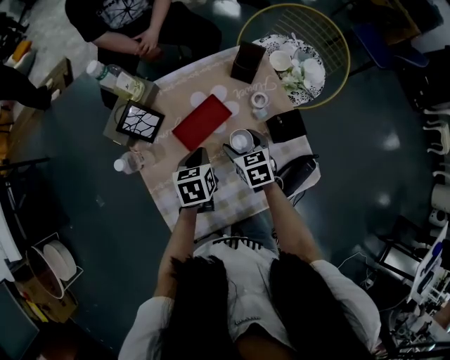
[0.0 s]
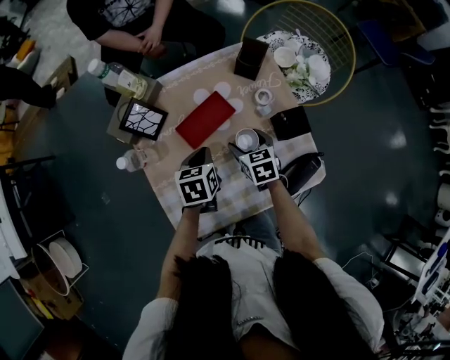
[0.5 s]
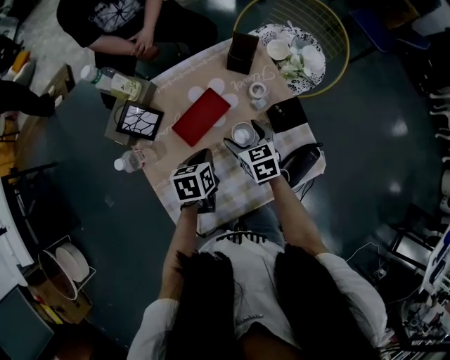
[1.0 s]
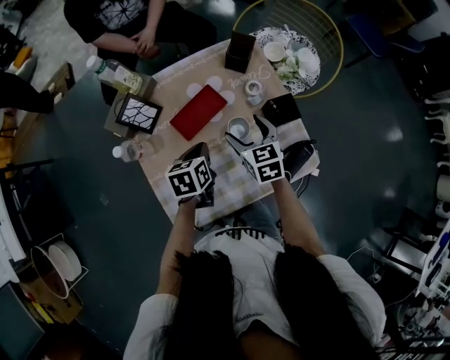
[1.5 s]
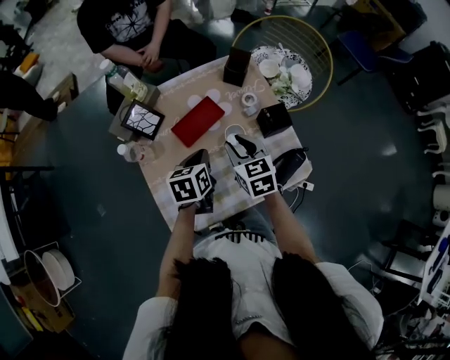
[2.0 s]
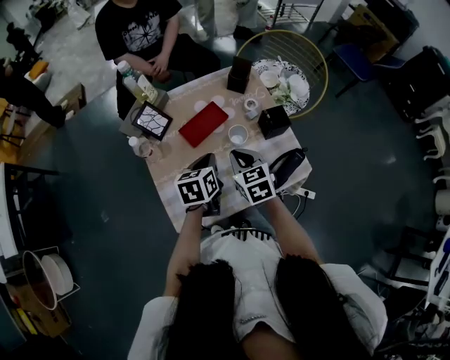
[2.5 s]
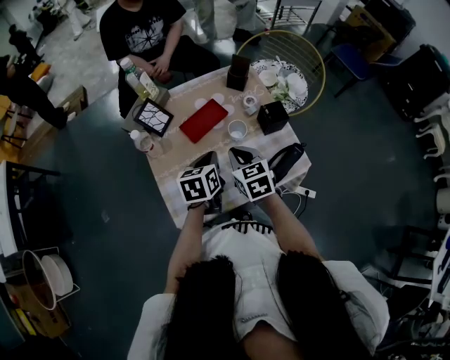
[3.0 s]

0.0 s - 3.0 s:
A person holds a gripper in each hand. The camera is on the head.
0.0 s - 1.5 s: The right gripper heads upward, covering about 5 cm.
1.5 s - 3.0 s: The left gripper heads upward and backward, covering about 10 cm; the right gripper travels backward and upward by some 10 cm, and closes its fingers.

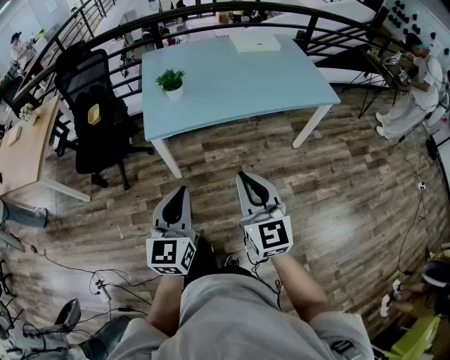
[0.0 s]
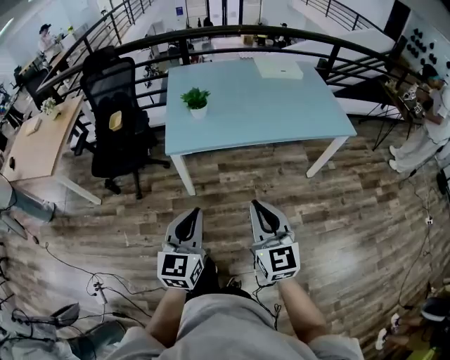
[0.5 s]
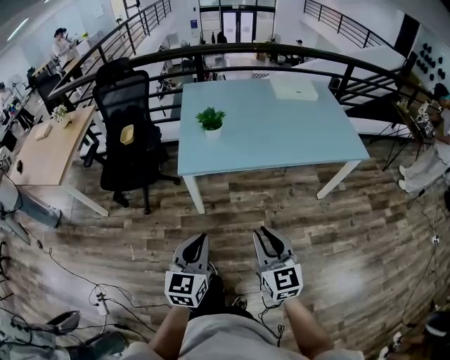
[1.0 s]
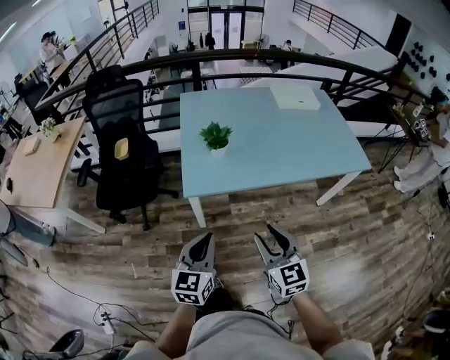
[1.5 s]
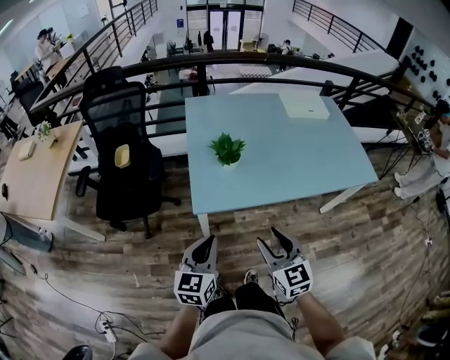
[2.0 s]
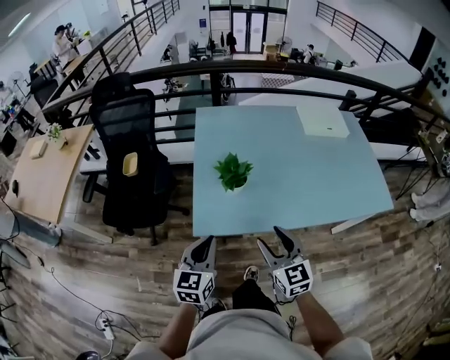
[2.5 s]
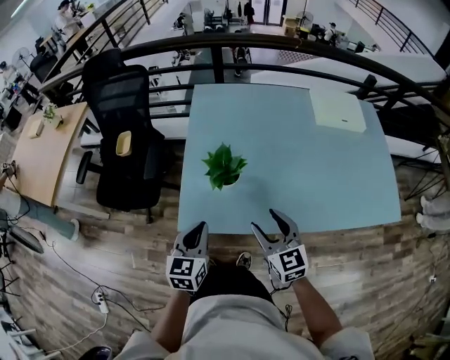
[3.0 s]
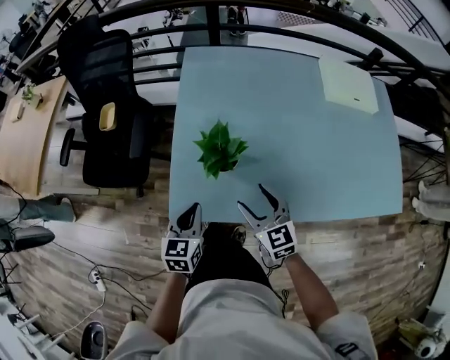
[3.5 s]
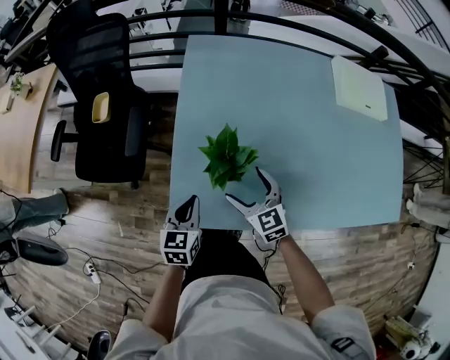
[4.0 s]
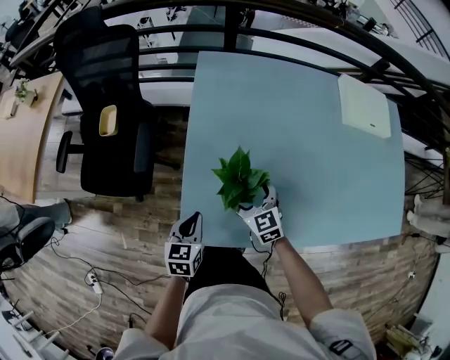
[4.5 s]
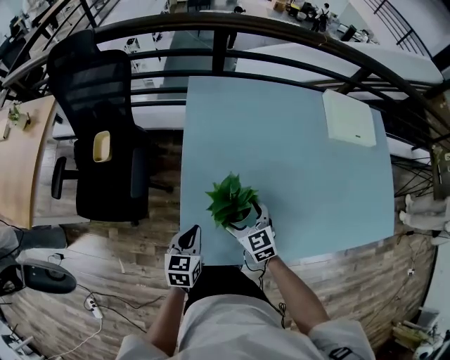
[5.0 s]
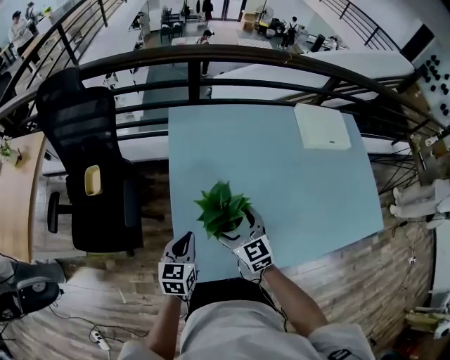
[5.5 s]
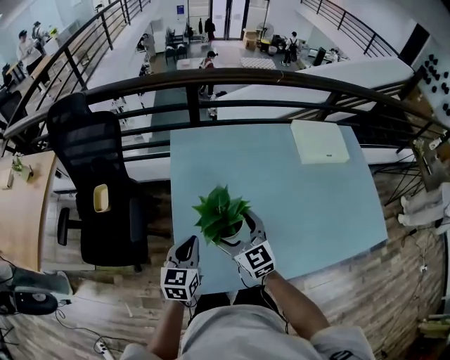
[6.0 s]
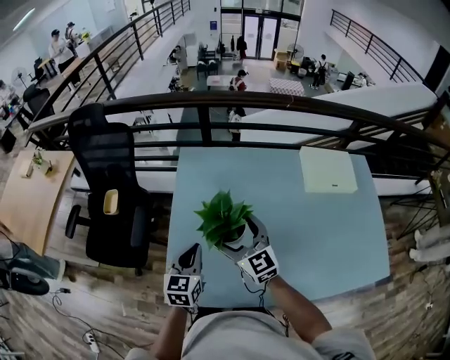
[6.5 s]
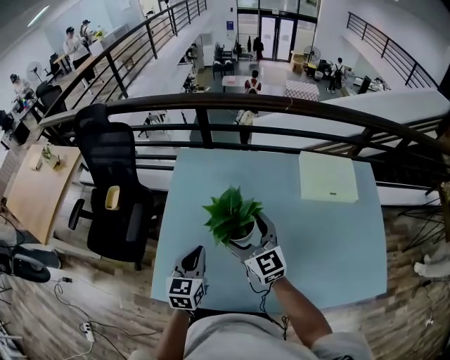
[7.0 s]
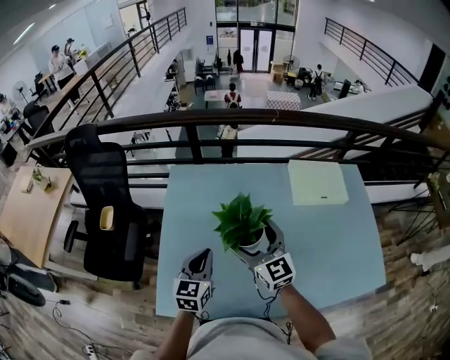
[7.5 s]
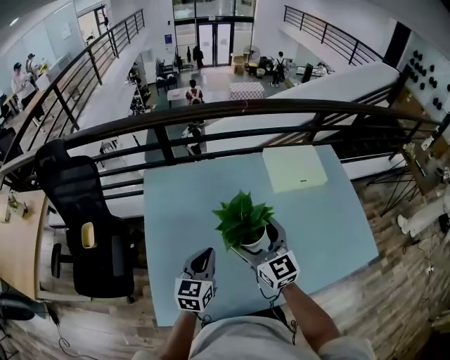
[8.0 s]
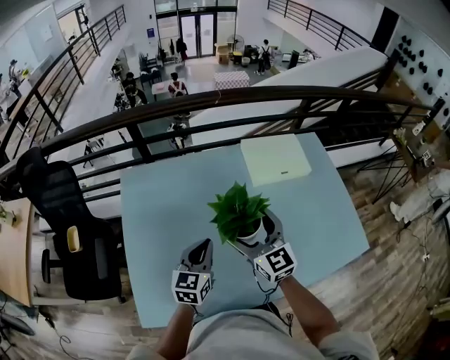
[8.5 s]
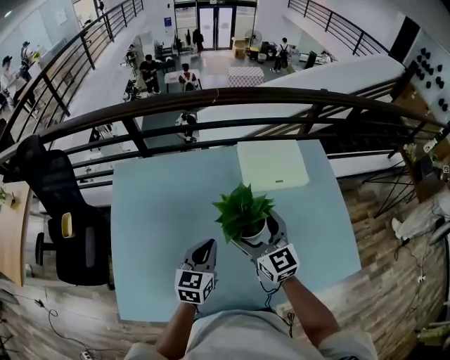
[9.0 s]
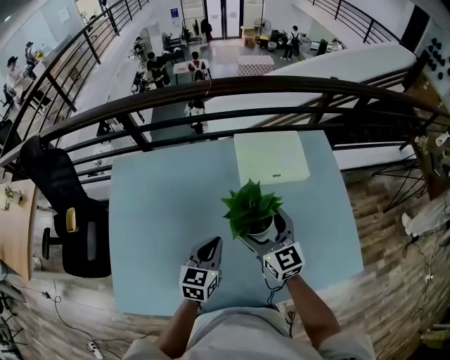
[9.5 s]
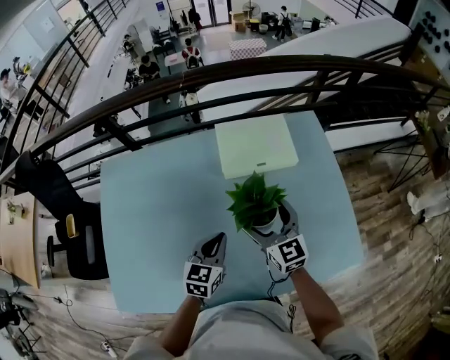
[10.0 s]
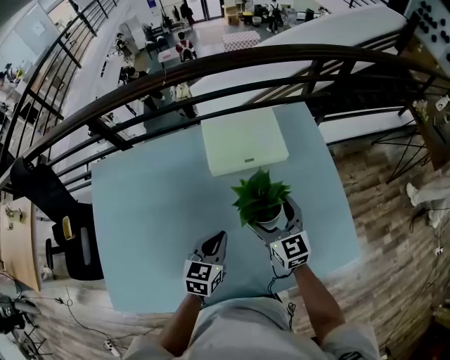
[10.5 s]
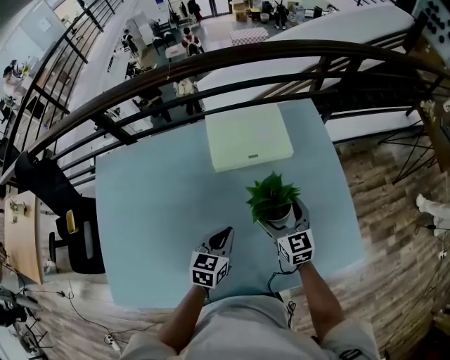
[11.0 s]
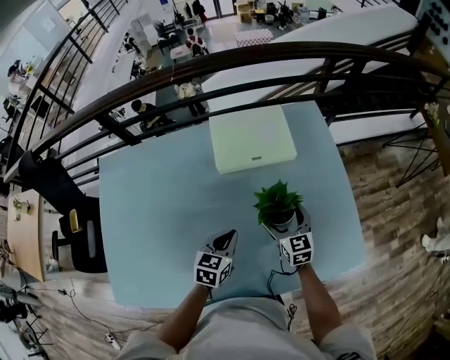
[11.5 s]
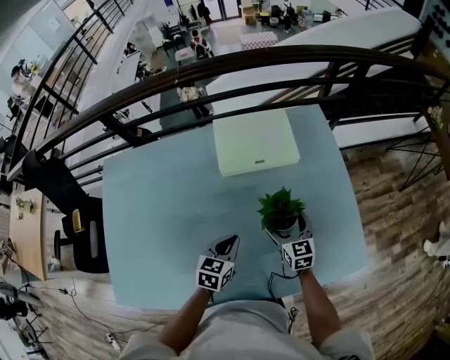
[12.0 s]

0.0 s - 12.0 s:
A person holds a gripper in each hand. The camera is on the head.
0.0 s - 2.0 s: The right gripper moves forward, to the left and downward, roughly 25 cm, and opens its fingers. The left gripper shifts approximately 25 cm forward and to the left.
2.0 s - 4.0 s: Both grippers travel together forward and downward, approximately 35 cm. The right gripper rotates approximately 20 degrees, and opens, while the left gripper changes its angle by about 30 degrees.
4.0 s - 6.0 s: The right gripper travels upward and forward by about 15 cm; the left gripper goes approximately 15 cm forward and upward.
6.0 s - 8.0 s: The right gripper heads to the right and upward, covering some 25 cm, while the left gripper moves to the right, roughly 20 cm.
8.0 s - 10.0 s: Both grippers move to the right, approximately 35 cm.
10.0 s - 12.0 s: The left gripper shifts about 10 cm downward and to the right, while the right gripper heads downward and to the right, covering about 20 cm.

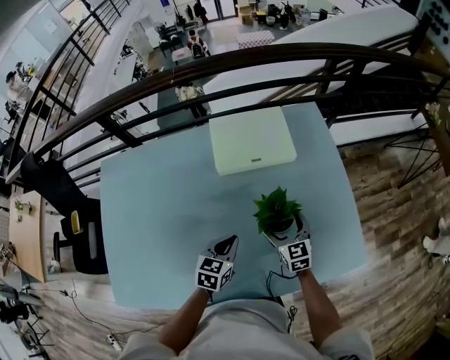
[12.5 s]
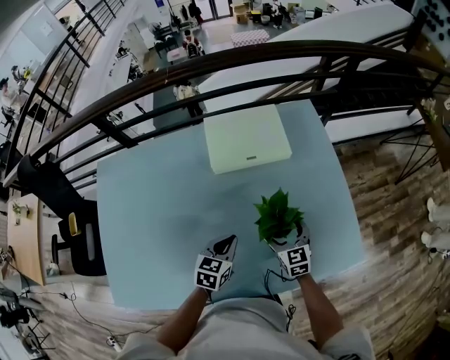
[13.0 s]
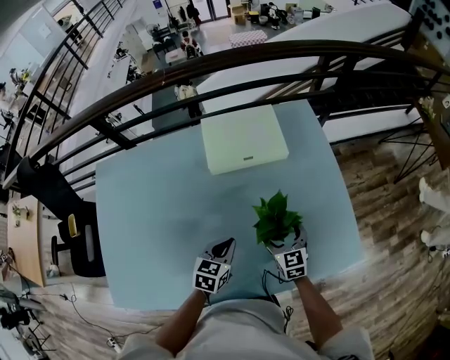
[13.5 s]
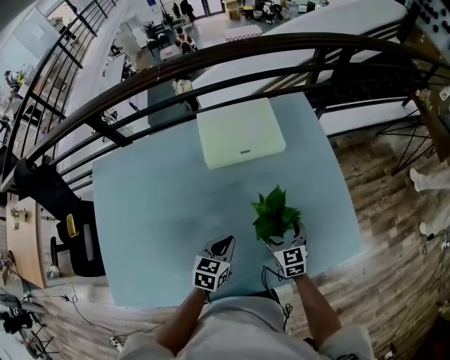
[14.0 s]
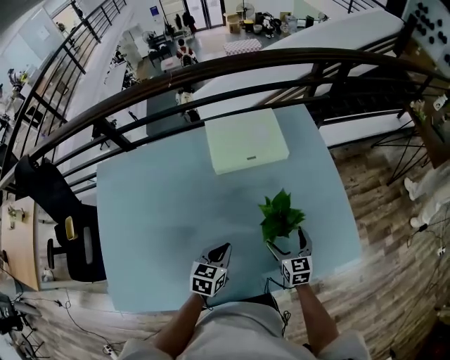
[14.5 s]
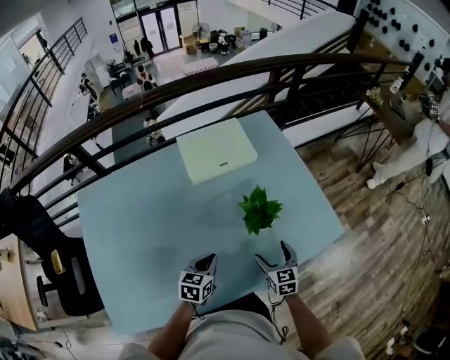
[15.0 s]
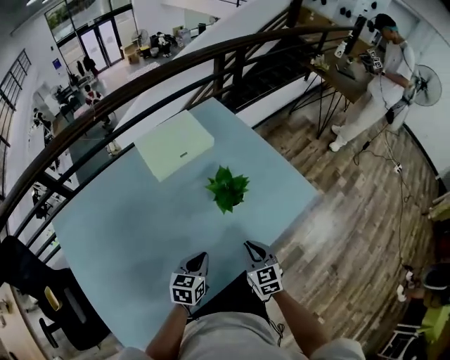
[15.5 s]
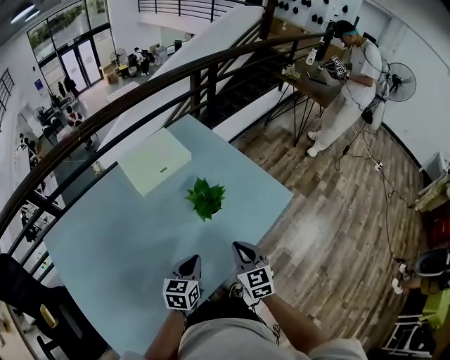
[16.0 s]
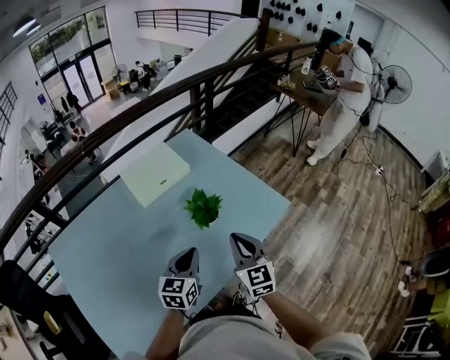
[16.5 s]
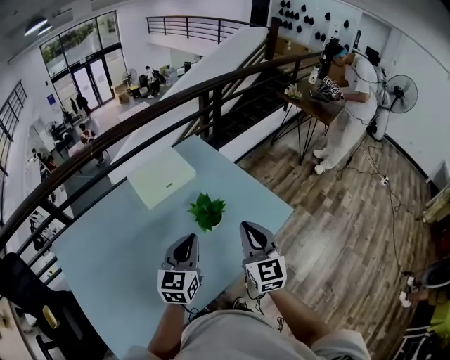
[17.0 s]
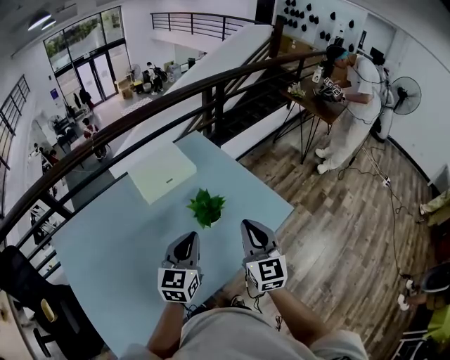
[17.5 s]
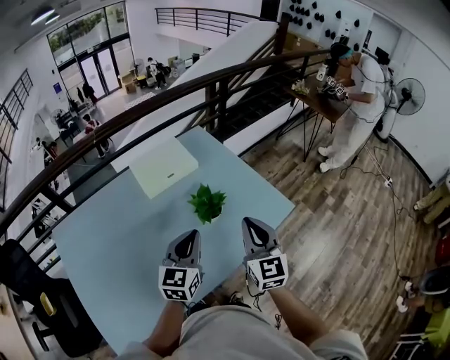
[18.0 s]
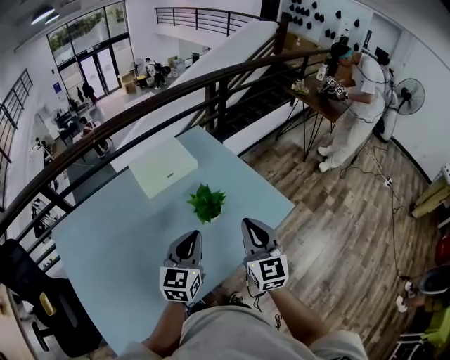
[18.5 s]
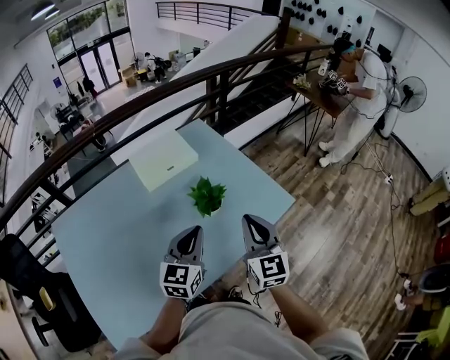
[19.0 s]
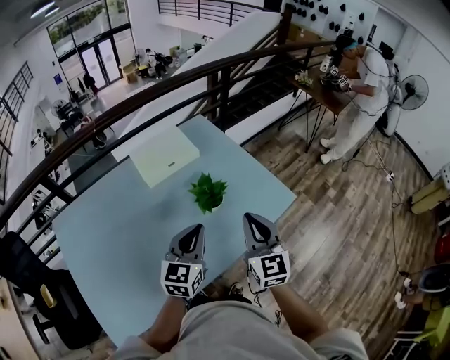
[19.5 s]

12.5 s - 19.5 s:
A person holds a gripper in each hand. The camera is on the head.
12.5 s - 14.5 s: The left gripper changes place by some 5 cm; the right gripper heads backward, covering some 10 cm.
14.5 s - 16.0 s: The left gripper goes about 10 cm backward, upward and to the right, and changes its angle by some 20 degrees, while the right gripper shifts some 20 cm backward and upward, rotates about 20 degrees, and closes its fingers.
16.0 s - 17.5 s: Both grippers travel together upward, approximately 15 cm. The right gripper swivels about 20 degrees. The left gripper swivels approximately 20 degrees.
17.5 s - 19.5 s: The grippers stay close to where they were, moving slightly.

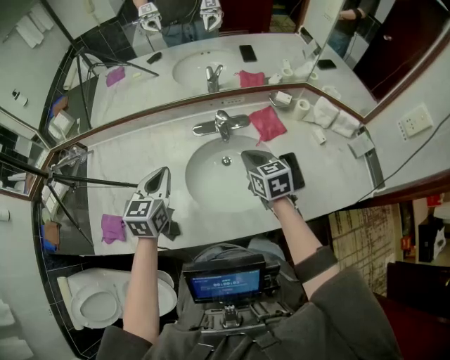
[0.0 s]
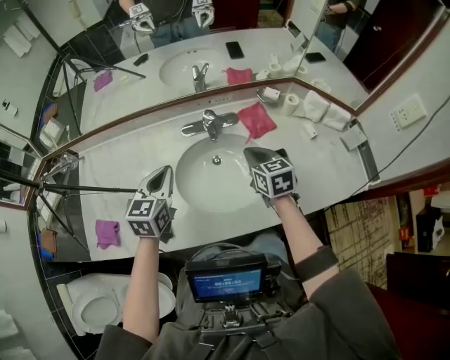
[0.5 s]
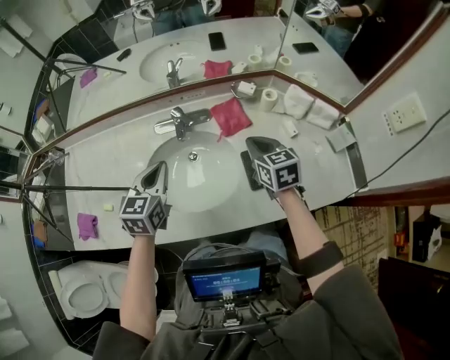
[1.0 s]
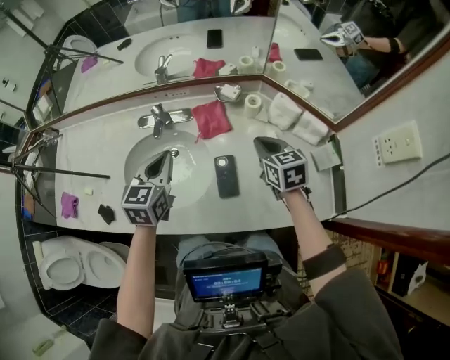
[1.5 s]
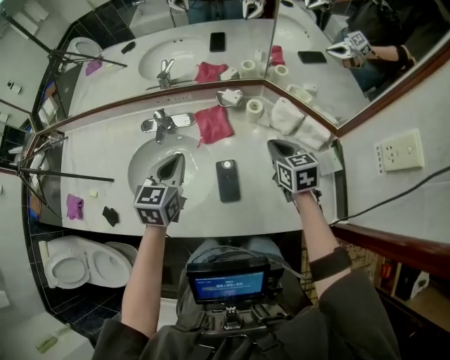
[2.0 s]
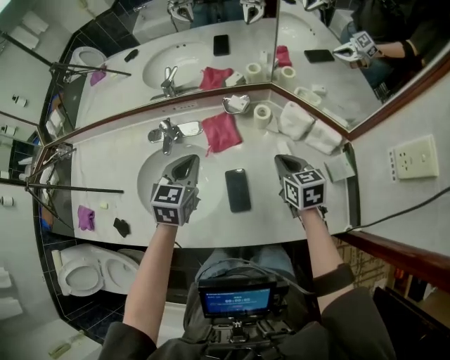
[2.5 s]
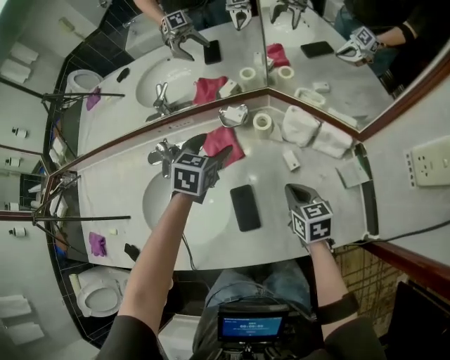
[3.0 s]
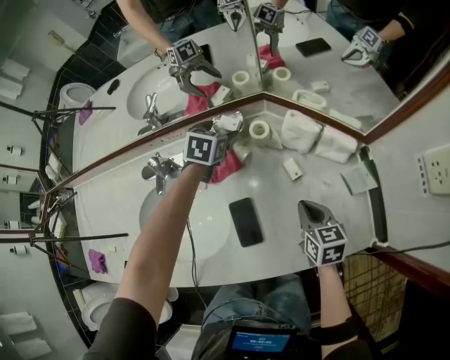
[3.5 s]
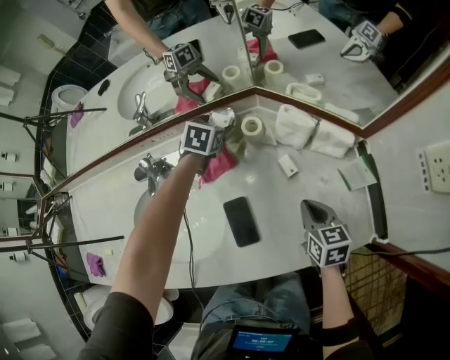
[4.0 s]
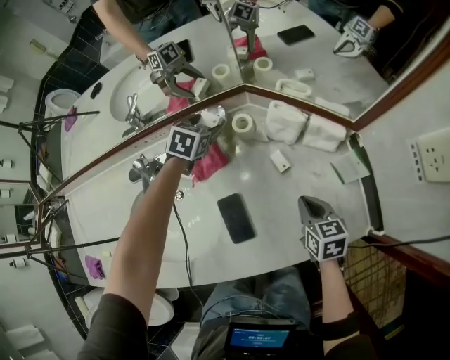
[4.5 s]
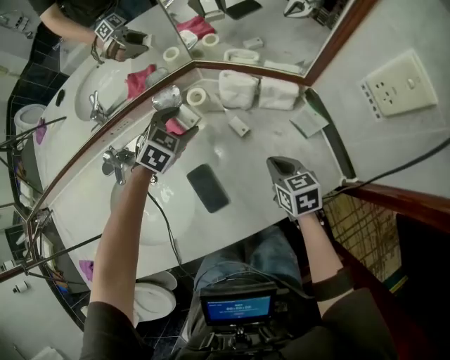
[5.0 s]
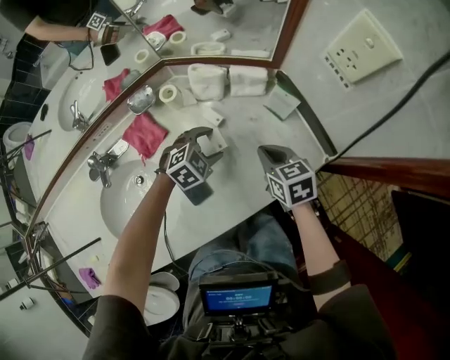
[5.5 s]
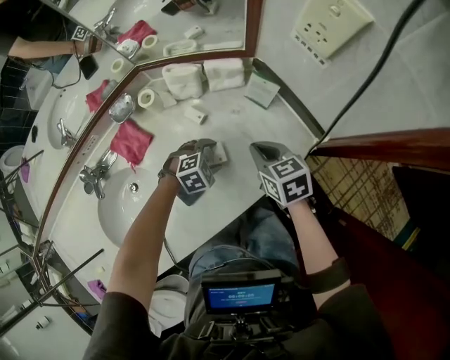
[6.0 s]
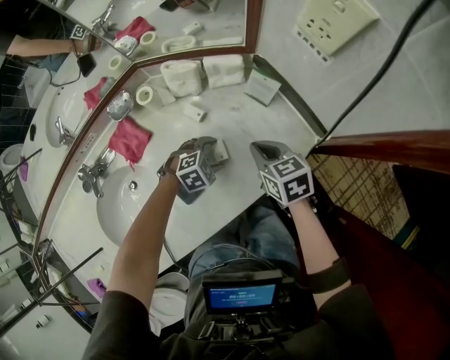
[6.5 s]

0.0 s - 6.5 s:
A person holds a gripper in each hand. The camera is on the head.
0.0 s - 2.0 s: The two grippers go roughly 35 cm to the right.
2.0 s - 4.5 s: The left gripper goes roughly 35 cm forward, downward and to the right, swivels roughly 40 degrees, and opens up. The right gripper is displaced downward, to the right and backward by some 15 cm, and turns by roughly 20 degrees.
4.5 s - 6.5 s: The left gripper ends up roughly 40 cm from where it was, and twists about 50 degrees clockwise, seen from behind. Meanwhile the right gripper changes place by roughly 10 cm.
